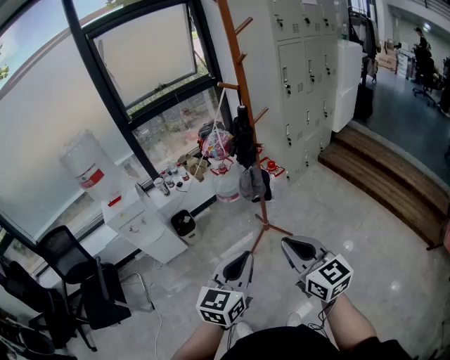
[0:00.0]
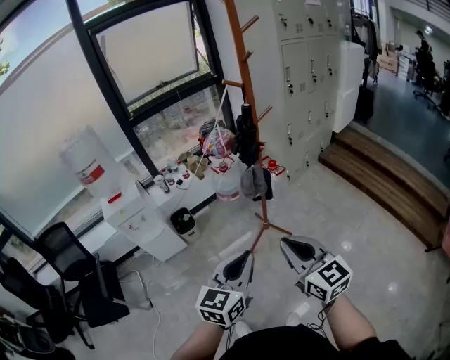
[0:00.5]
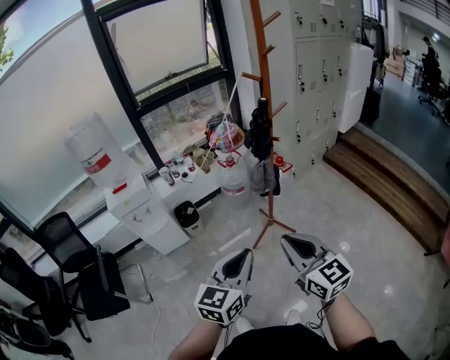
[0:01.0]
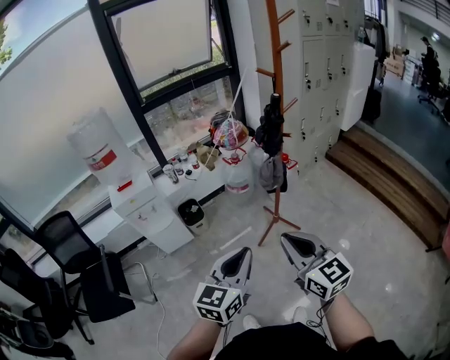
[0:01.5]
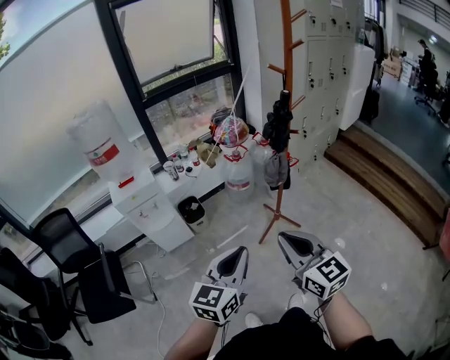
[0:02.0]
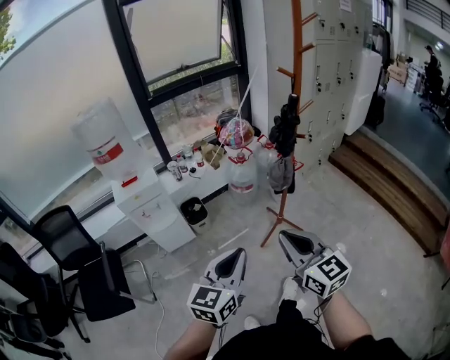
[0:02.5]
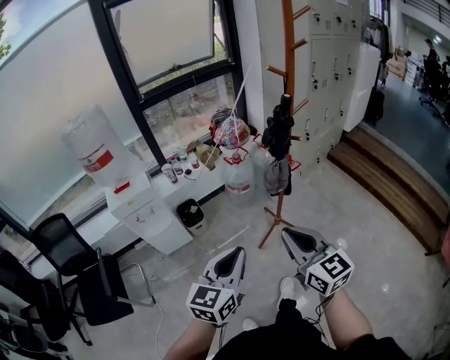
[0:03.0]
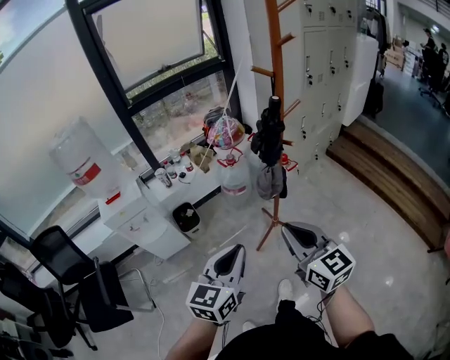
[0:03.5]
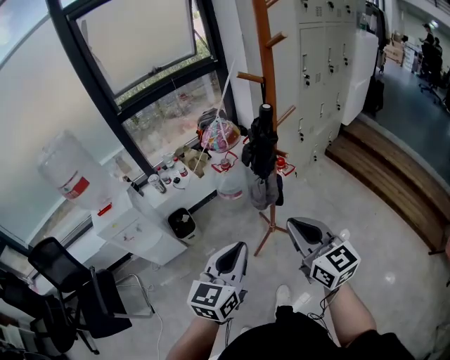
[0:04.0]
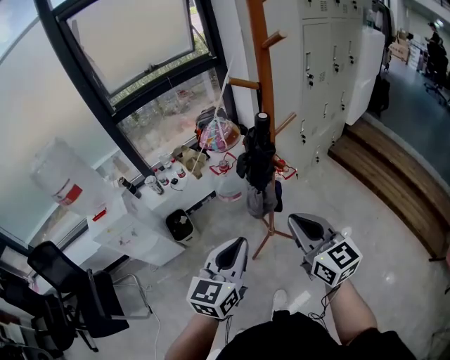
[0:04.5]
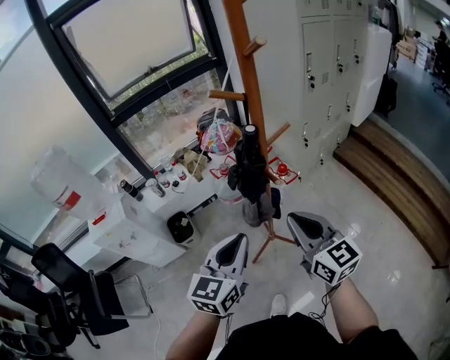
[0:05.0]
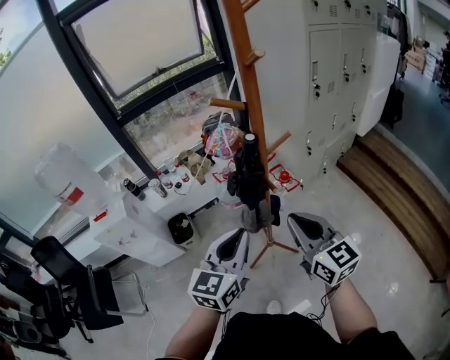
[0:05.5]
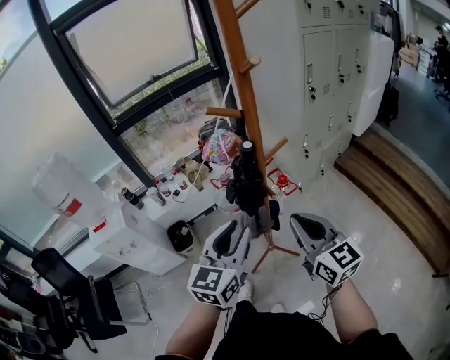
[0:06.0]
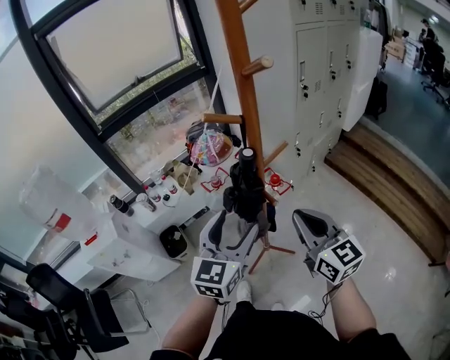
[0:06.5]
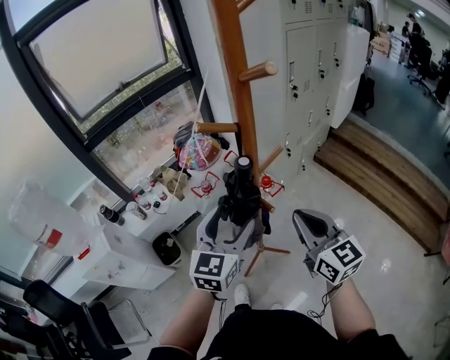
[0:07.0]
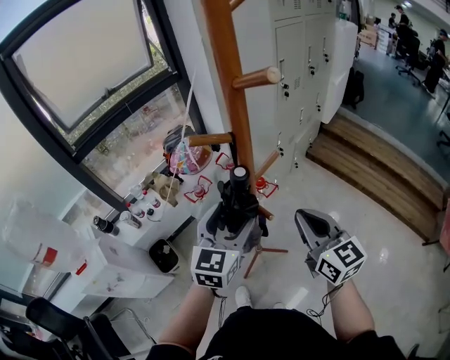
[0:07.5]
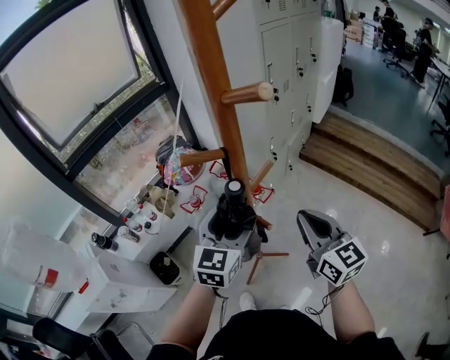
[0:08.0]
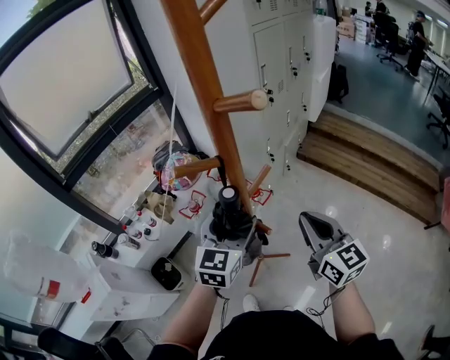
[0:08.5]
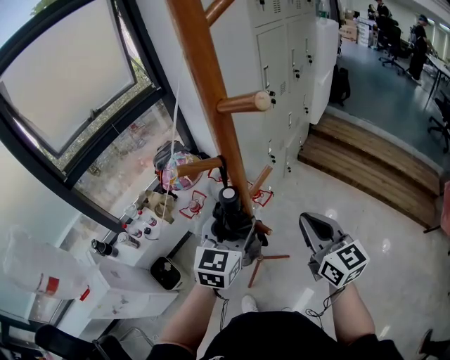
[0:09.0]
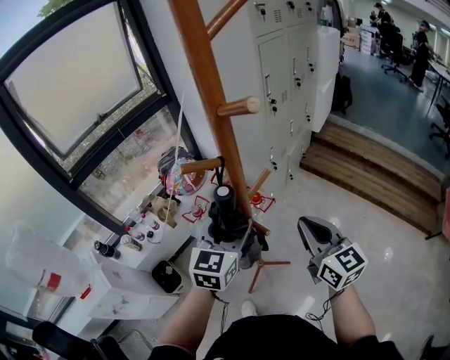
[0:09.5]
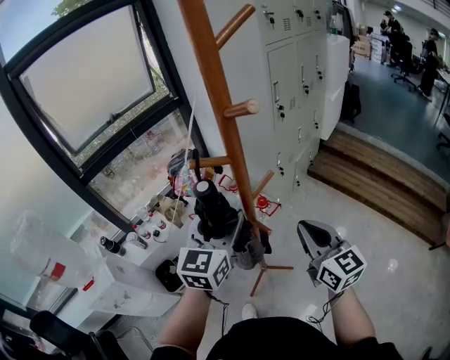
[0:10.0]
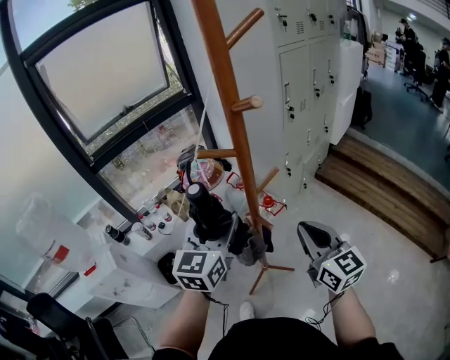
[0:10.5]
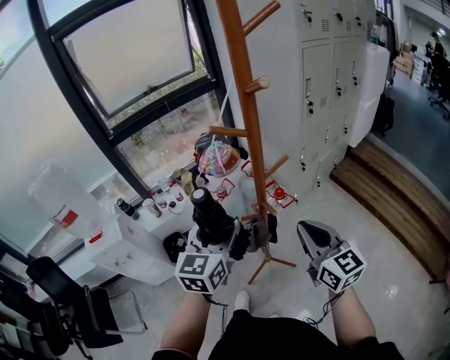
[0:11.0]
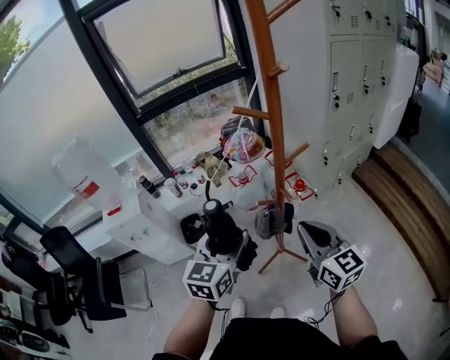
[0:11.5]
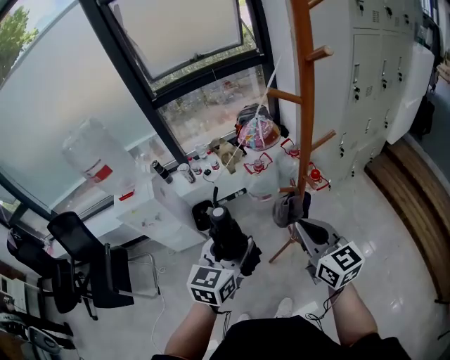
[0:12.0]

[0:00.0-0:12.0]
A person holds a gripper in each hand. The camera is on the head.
0:00.0 to 0:02.0: Both grippers travel together to the left, approximately 15 cm.
0:02.0 to 0:04.0: The two grippers go approximately 20 cm forward and to the right.
0:04.0 to 0:06.0: The grippers both shift forward and to the right by some 20 cm.
0:06.0 to 0:08.0: The right gripper goes roughly 10 cm forward, and swivels approximately 20 degrees; the left gripper travels forward by about 15 cm, and opens up.
0:08.0 to 0:10.0: The left gripper goes roughly 10 cm upward.
0:10.0 to 0:12.0: The left gripper is displaced backward, to the left and downward by about 25 cm, and changes its angle by roughly 30 degrees, while the right gripper heads to the left and backward, covering approximately 15 cm, and turns by some 30 degrees.

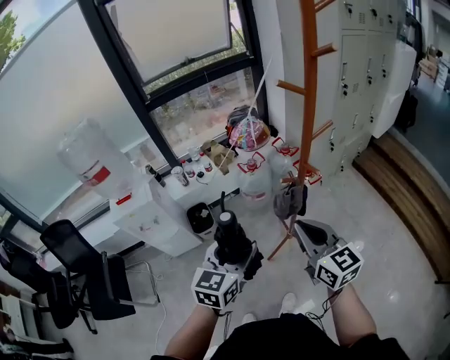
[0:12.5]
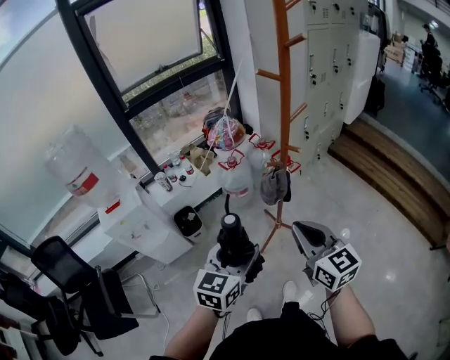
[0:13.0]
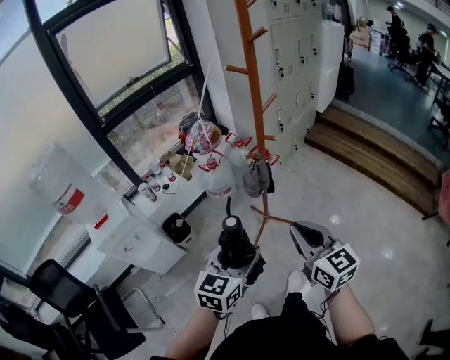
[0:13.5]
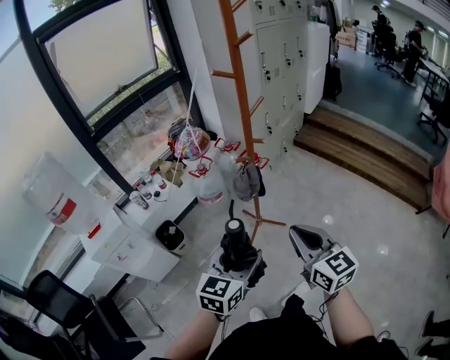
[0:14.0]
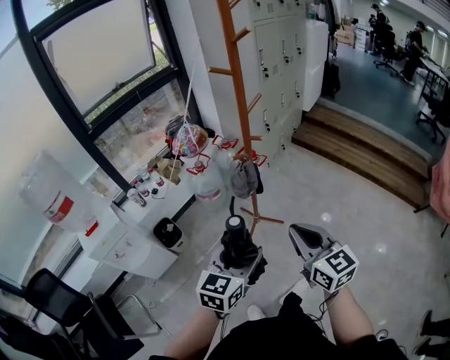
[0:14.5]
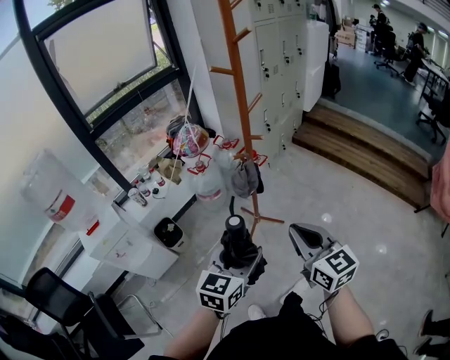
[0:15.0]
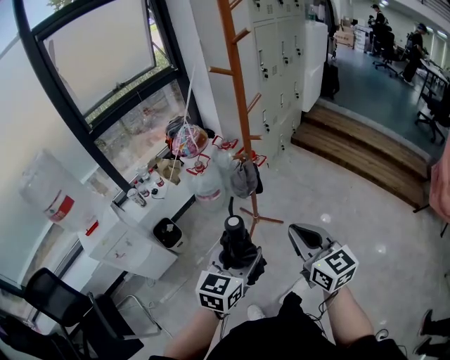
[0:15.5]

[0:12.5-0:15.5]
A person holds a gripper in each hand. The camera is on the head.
0:12.5 to 0:14.0: The left gripper travels backward and to the right by some 15 cm, and swivels some 30 degrees. The right gripper shifts about 15 cm backward, and turns by roughly 20 degrees.
0:14.0 to 0:15.5: Both grippers stay put.

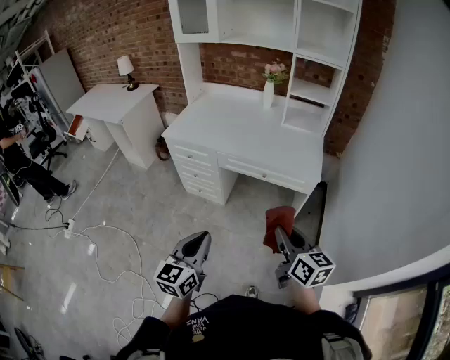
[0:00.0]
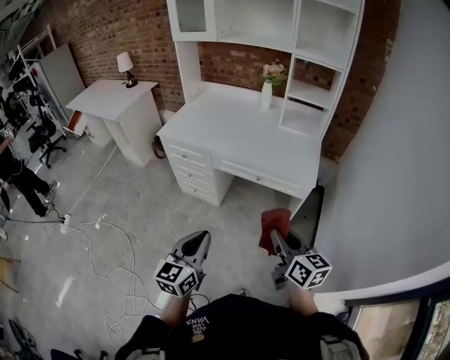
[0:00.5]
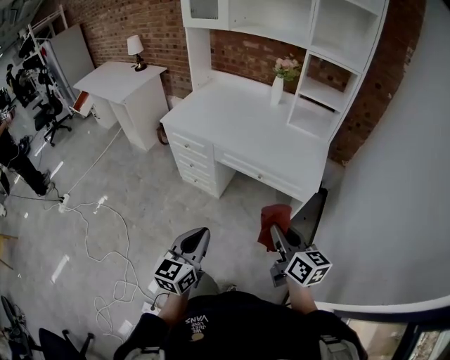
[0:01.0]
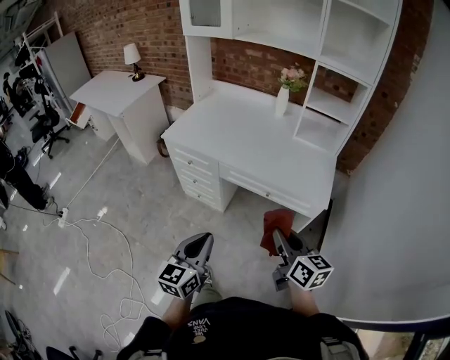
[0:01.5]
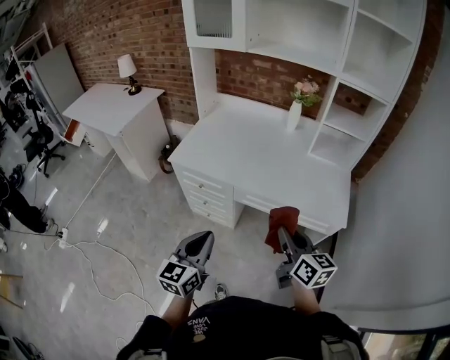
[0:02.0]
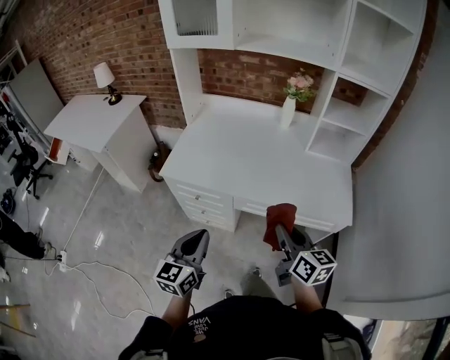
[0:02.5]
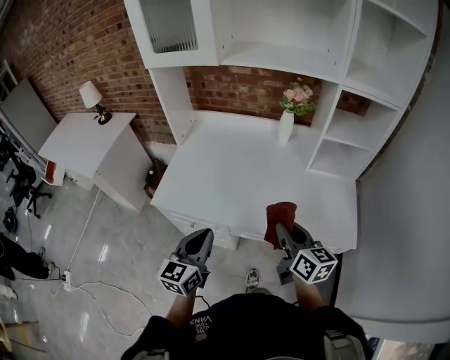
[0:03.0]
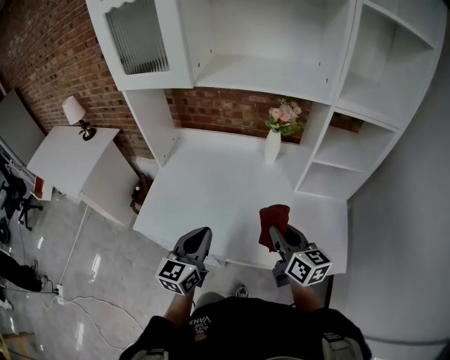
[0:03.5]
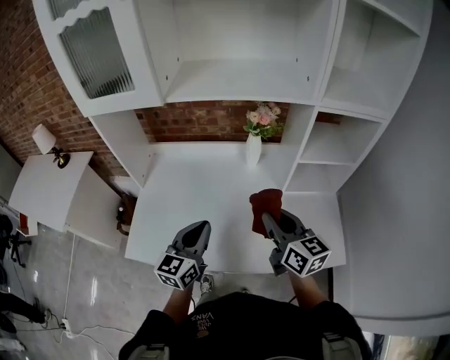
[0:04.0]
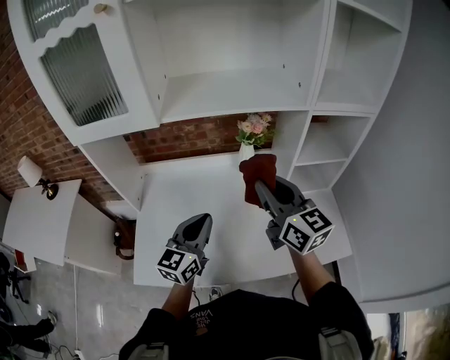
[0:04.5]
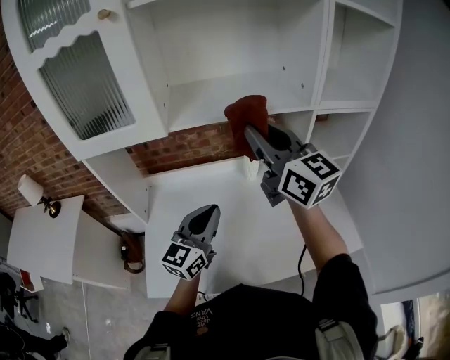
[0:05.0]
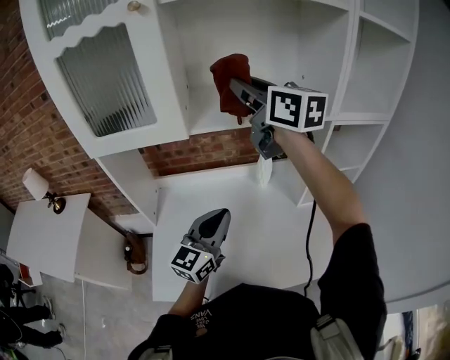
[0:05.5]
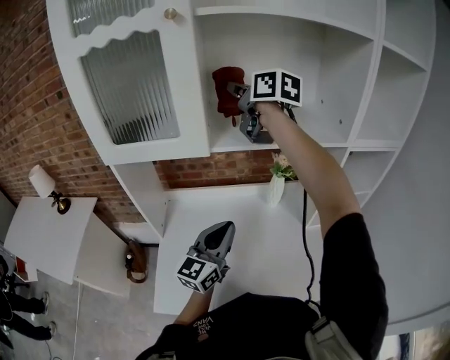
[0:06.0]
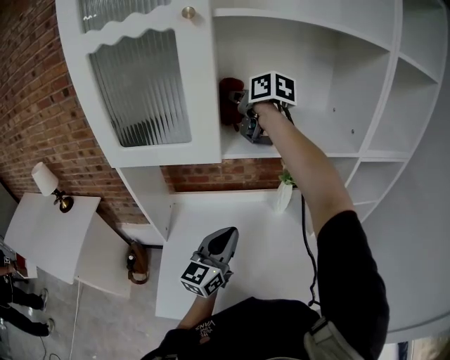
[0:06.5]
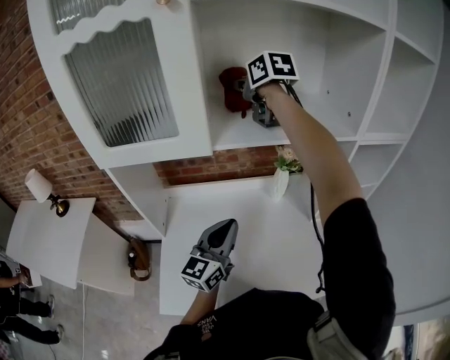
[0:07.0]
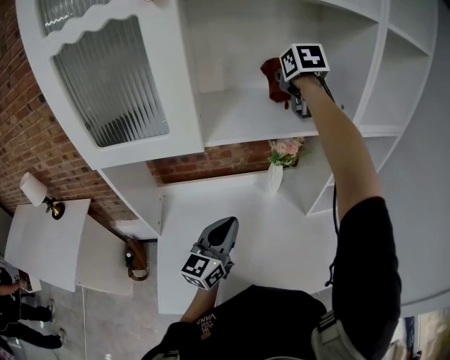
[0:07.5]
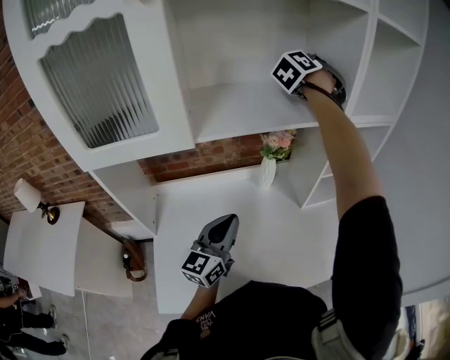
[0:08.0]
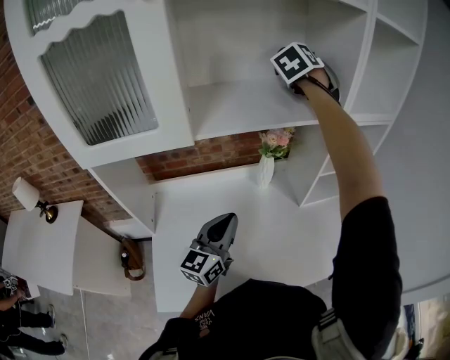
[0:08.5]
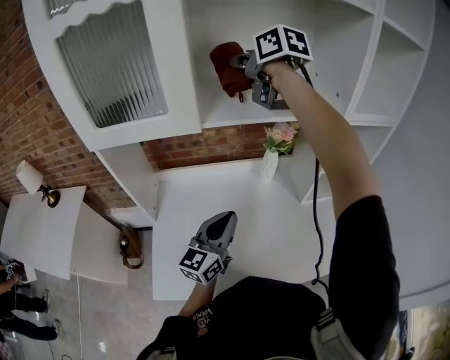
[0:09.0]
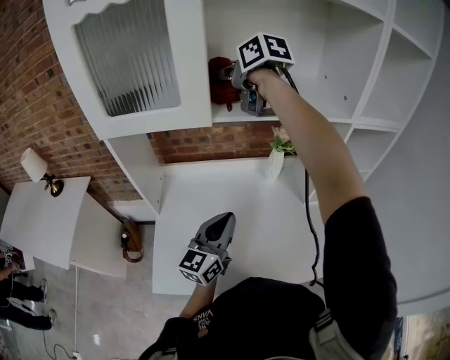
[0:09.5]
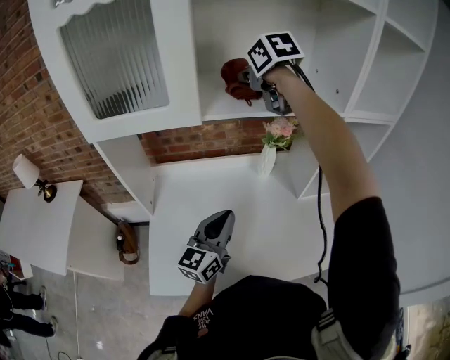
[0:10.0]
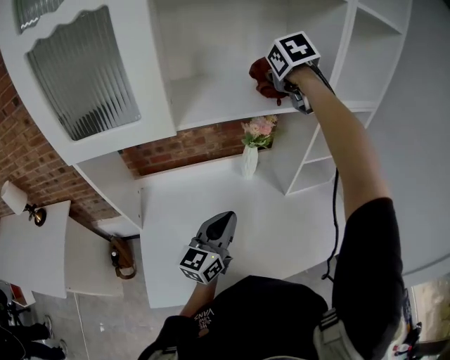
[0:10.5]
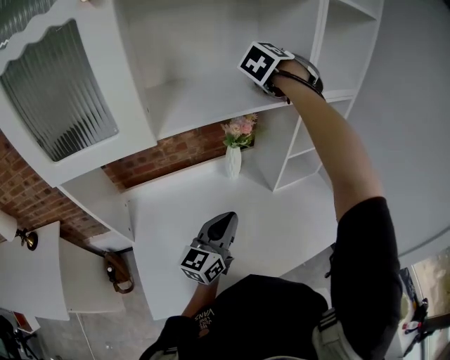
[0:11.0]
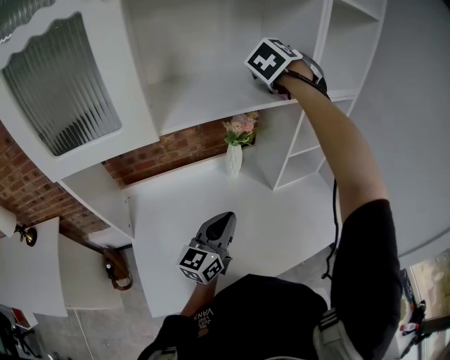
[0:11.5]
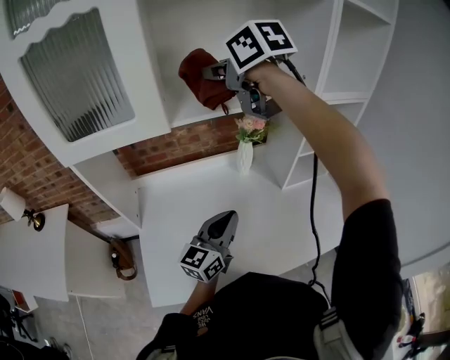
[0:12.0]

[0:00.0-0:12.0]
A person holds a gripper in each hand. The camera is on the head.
0:00.0 to 0:02.0: Both grippers travel together forward, roughly 25 cm.
0:02.0 to 0:04.0: Both grippers travel together forward, about 40 cm.
0:04.0 to 0:06.0: The left gripper is displaced forward, to the left and upward by approximately 15 cm. Meanwhile the right gripper is displaced forward, upward and to the left by approximately 50 cm.
0:06.0 to 0:08.0: The right gripper shifts by about 25 cm, and turns by about 100 degrees.
0:08.0 to 0:10.0: The right gripper changes place by roughly 25 cm, and changes its angle by roughly 70 degrees.
0:10.0 to 0:12.0: The left gripper ends up roughly 5 cm from where it was.
